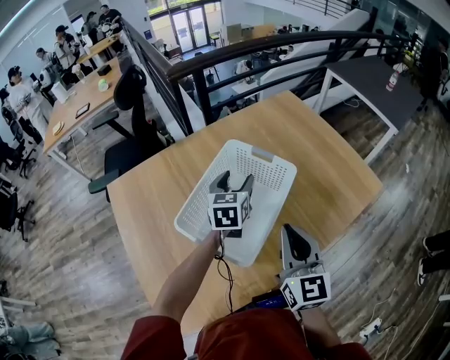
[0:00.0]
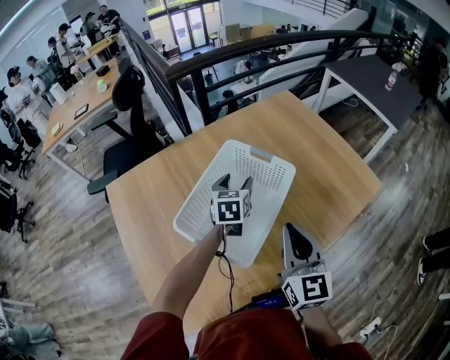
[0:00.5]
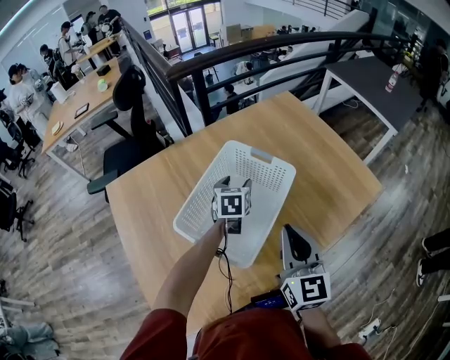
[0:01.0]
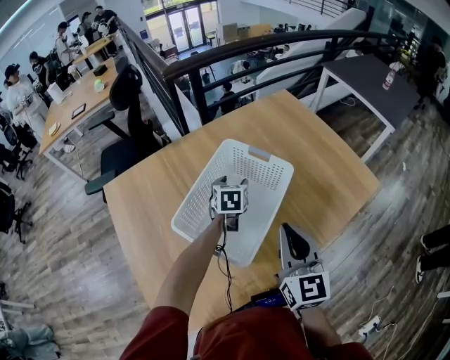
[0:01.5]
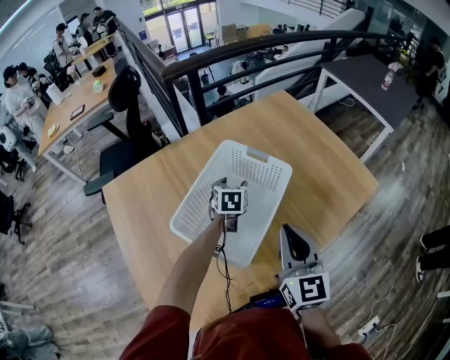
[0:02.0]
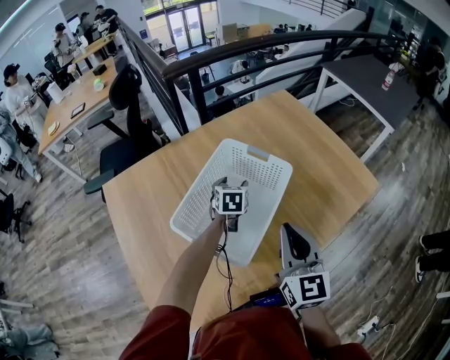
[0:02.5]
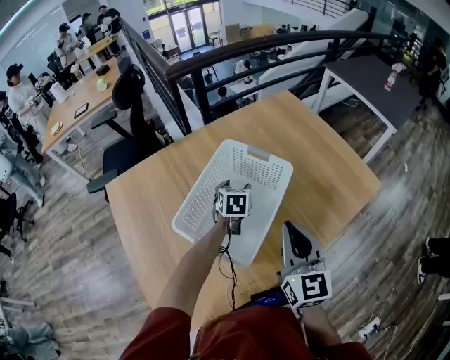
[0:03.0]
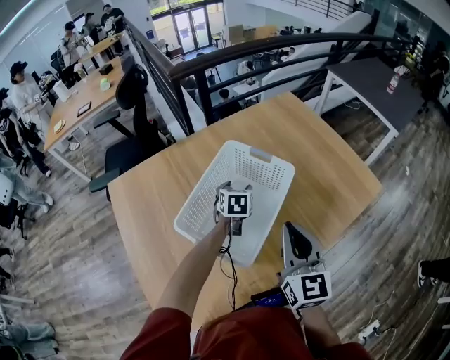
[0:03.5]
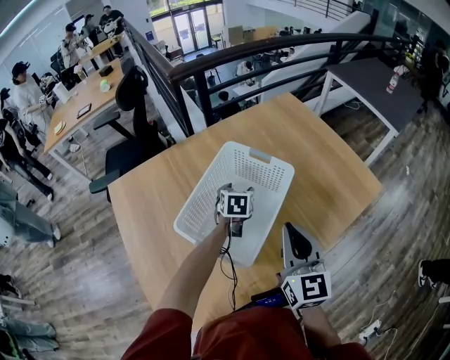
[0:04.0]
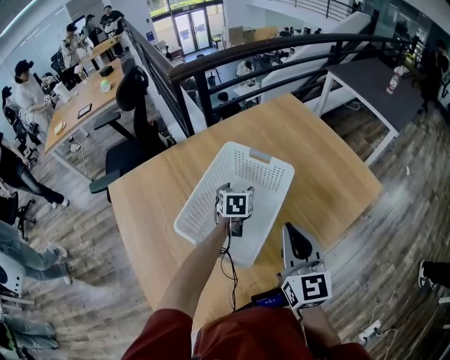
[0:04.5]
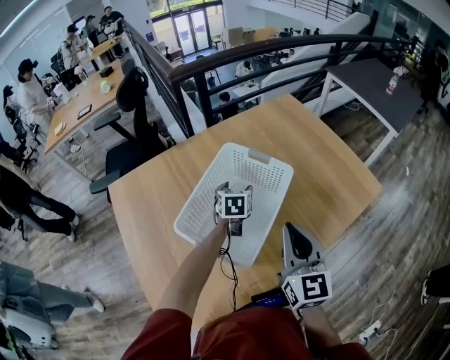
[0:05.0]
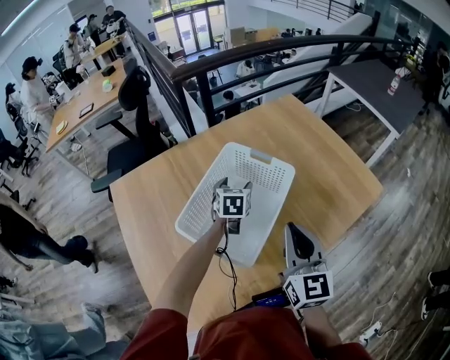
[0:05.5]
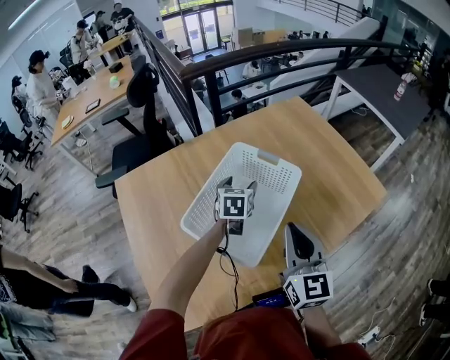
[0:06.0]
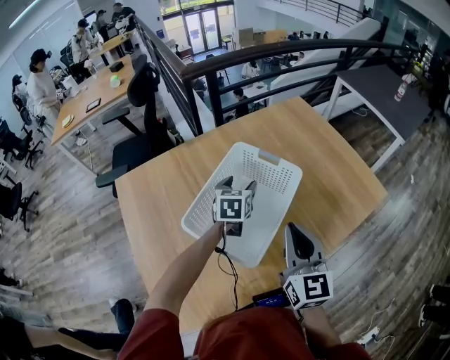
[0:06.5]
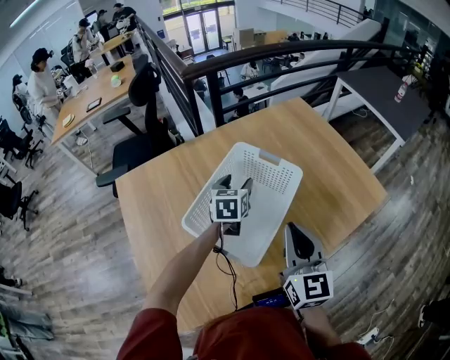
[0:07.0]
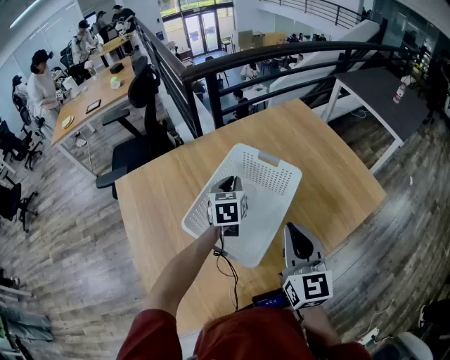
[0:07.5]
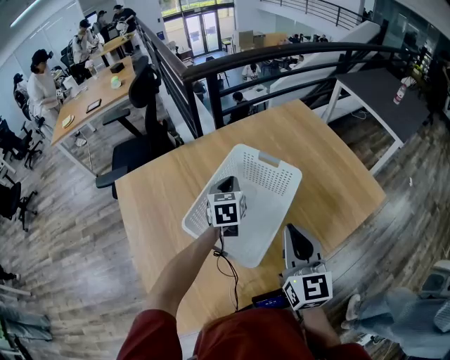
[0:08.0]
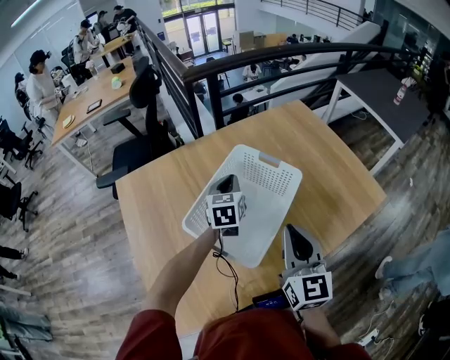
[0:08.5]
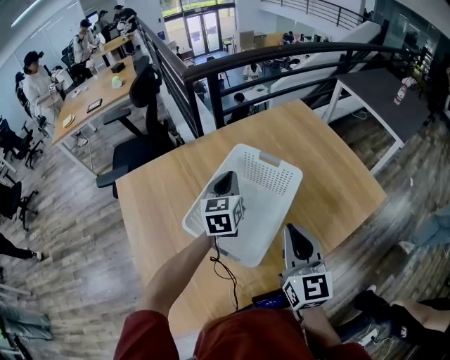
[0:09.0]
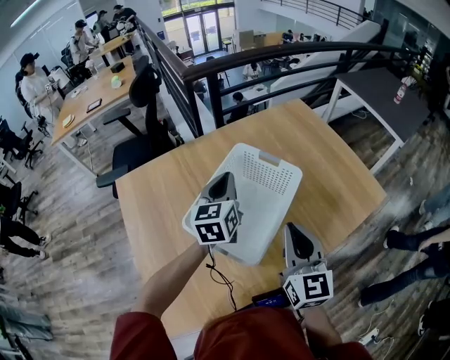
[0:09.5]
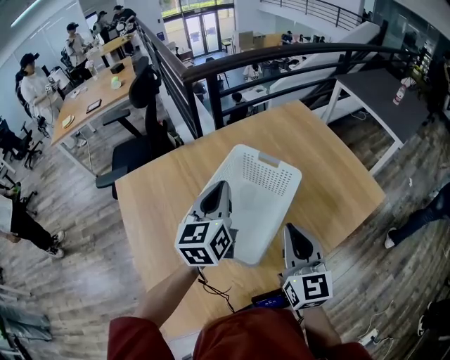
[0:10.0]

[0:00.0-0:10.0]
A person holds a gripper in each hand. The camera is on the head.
0:00.0 to 0:02.0: The left gripper shifts roughly 10 cm downward.
0:02.0 to 0:04.0: The grippers stay close to where they were, moving slightly.
0:04.0 to 0:06.0: The left gripper shifts by some 5 cm.
0:06.0 to 0:08.0: The left gripper shifts by roughly 5 cm, and closes up.
0:08.0 to 0:10.0: The left gripper goes roughly 15 cm upward and backward, and turns by some 20 degrees.

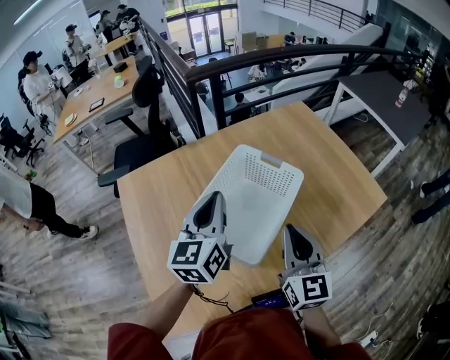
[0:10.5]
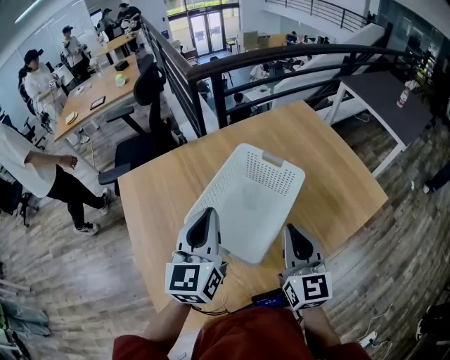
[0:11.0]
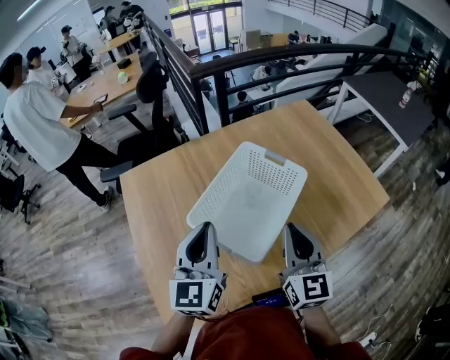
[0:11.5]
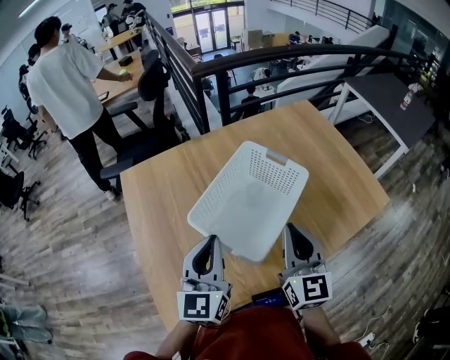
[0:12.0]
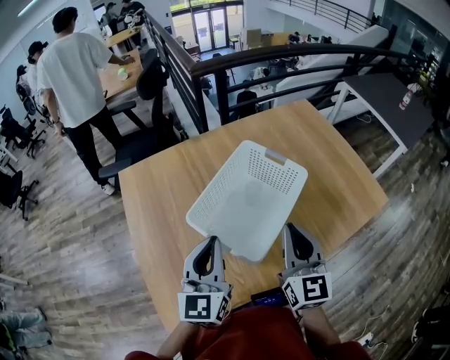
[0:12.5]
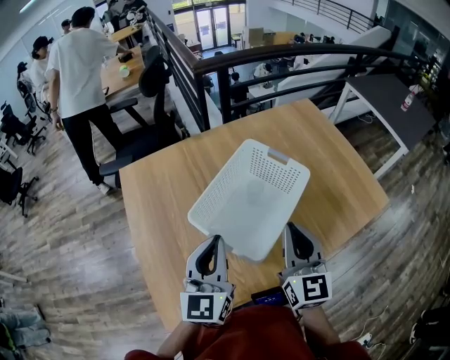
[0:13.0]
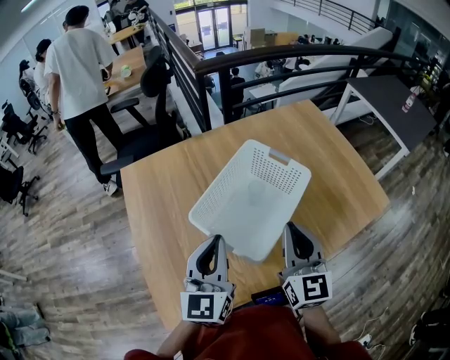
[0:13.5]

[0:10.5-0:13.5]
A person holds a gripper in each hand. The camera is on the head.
0:10.5 to 0:12.0: The left gripper heads backward, covering some 10 cm.
0:12.0 to 0:13.5: Both grippers stay put.

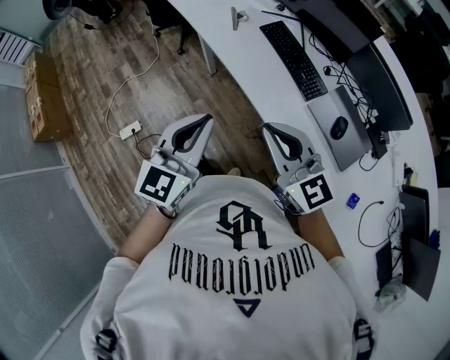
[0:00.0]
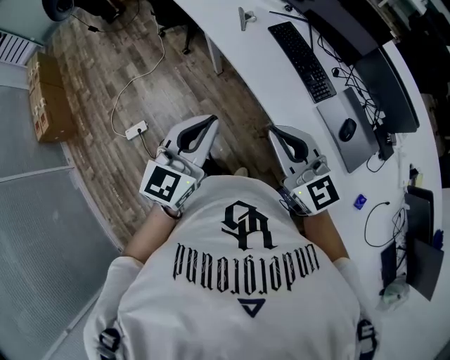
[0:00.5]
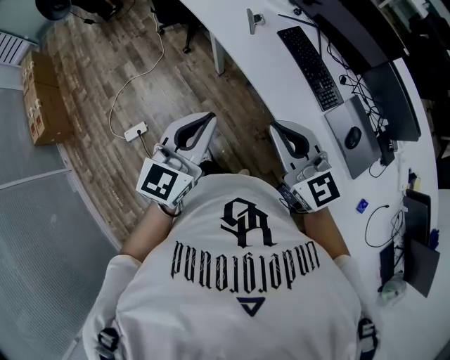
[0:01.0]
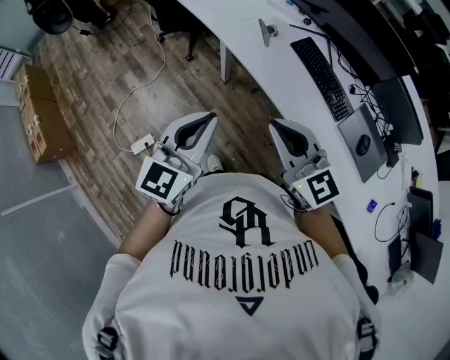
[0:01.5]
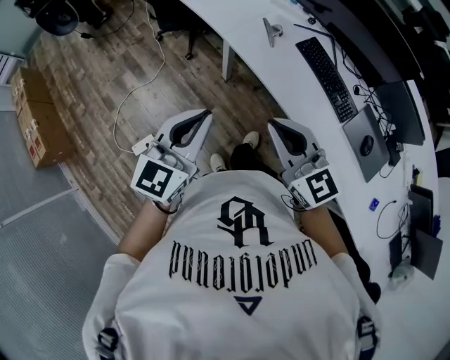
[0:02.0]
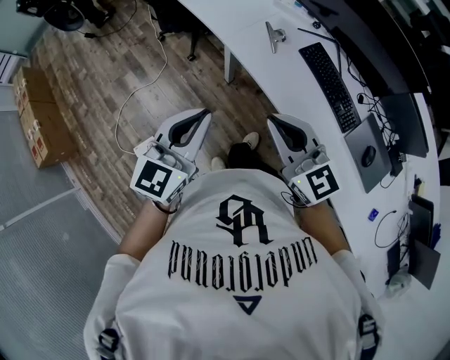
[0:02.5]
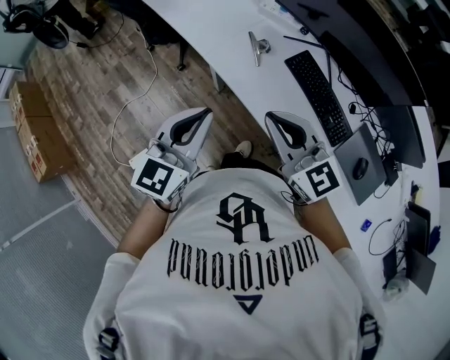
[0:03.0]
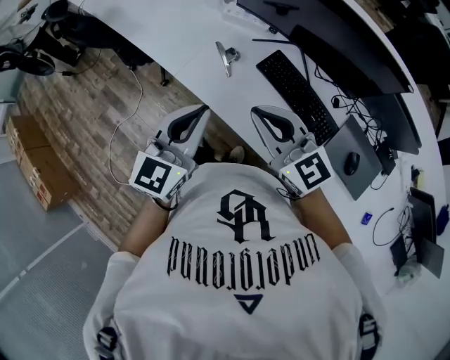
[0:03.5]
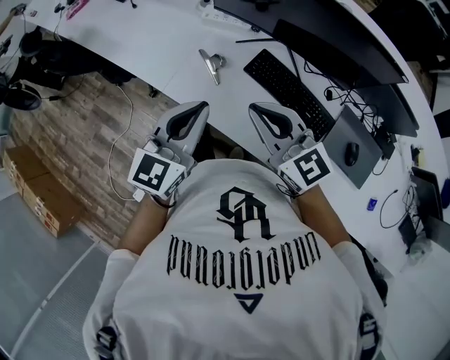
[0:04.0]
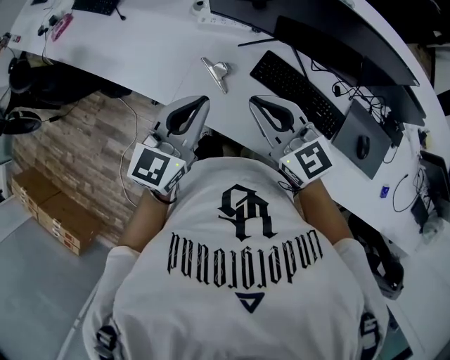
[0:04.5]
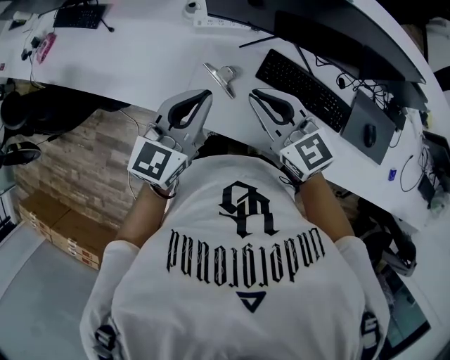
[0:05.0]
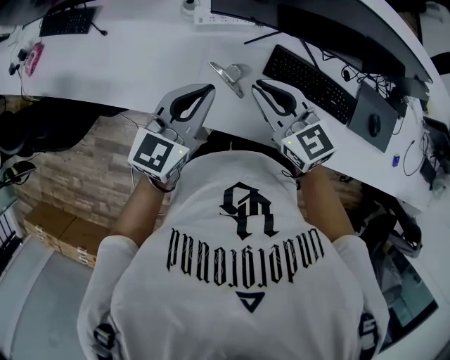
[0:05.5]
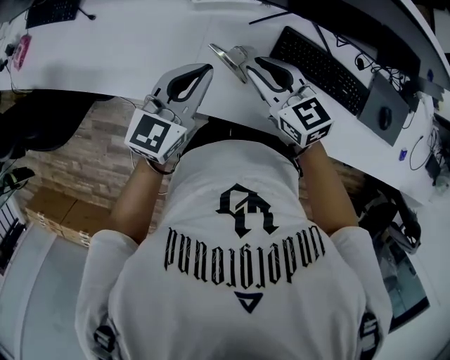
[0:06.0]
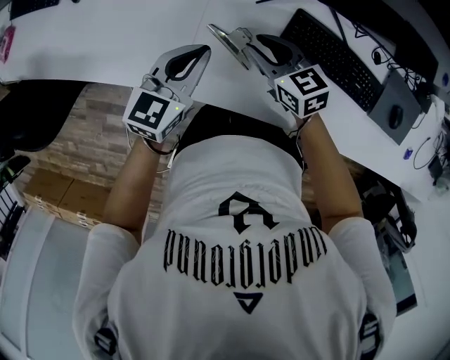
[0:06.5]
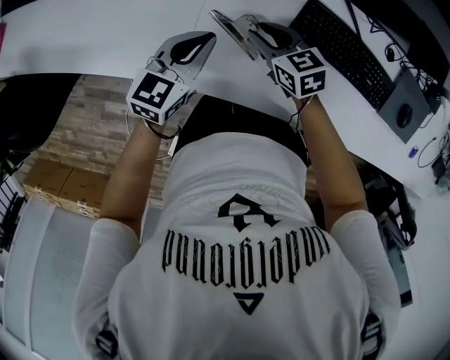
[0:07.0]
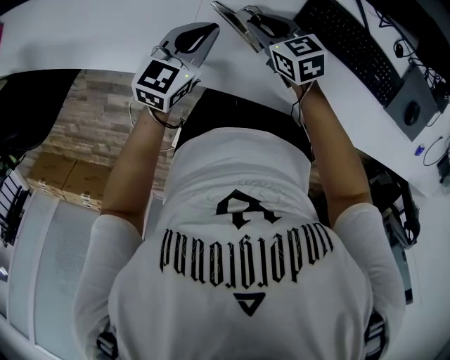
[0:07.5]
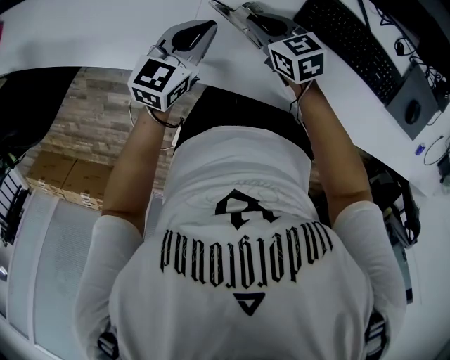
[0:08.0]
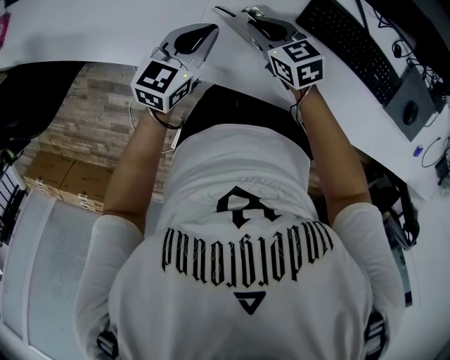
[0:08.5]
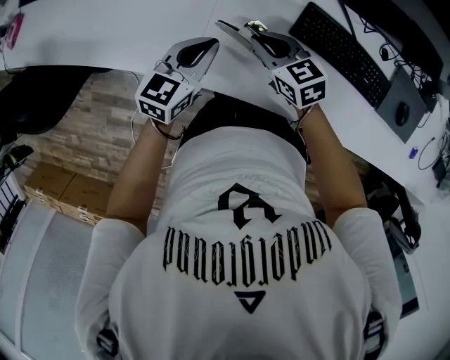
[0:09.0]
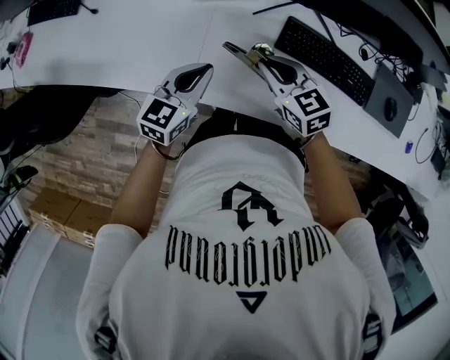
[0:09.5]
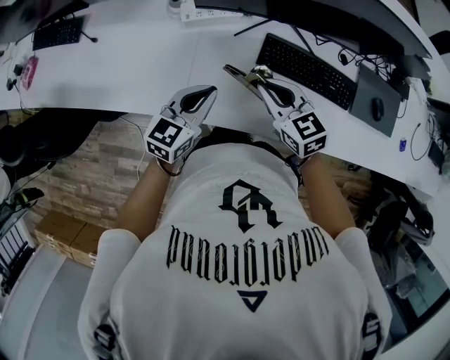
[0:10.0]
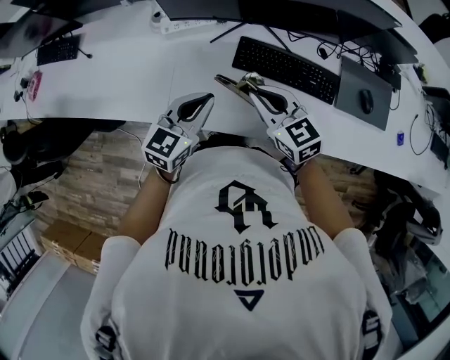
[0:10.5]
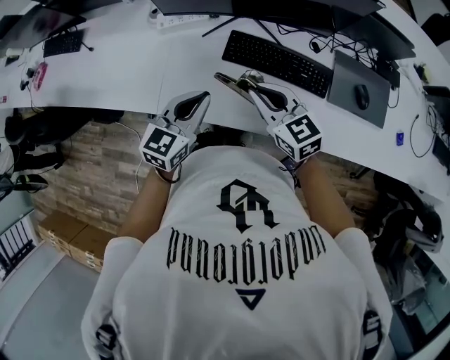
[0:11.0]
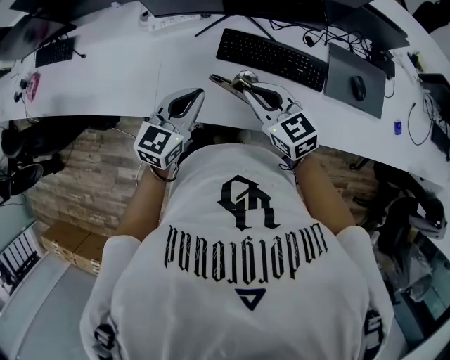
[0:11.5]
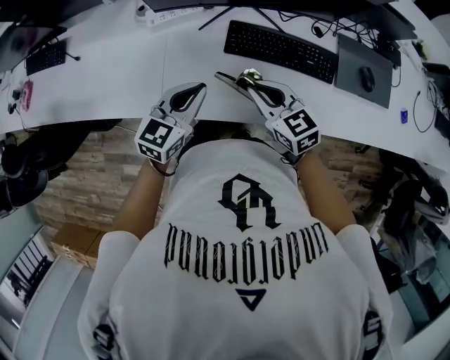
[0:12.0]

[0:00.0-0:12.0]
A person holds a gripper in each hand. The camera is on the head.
0:00.0 to 0:02.0: The two grippers go some 30 cm to the left and forward.
0:02.0 to 0:04.0: The grippers both shift forward and to the right by approximately 35 cm.
0:04.0 to 0:06.0: Both grippers travel together forward, downward and to the left, roughly 25 cm. The right gripper rotates some 30 degrees. The left gripper changes its angle by roughly 20 degrees.
0:06.0 to 0:08.0: The two grippers go approximately 20 cm downward.
0:08.0 to 0:10.0: The left gripper travels upward and backward by about 15 cm. The right gripper moves upward, roughly 20 cm, and turns by about 20 degrees.
0:10.0 to 0:12.0: The left gripper goes roughly 10 cm to the right. Meanwhile the right gripper travels to the right and backward by roughly 10 cm.

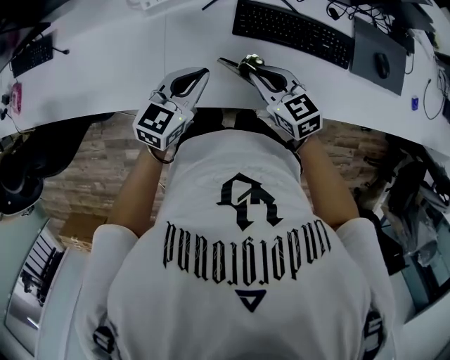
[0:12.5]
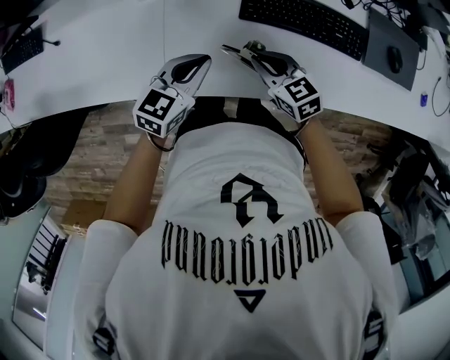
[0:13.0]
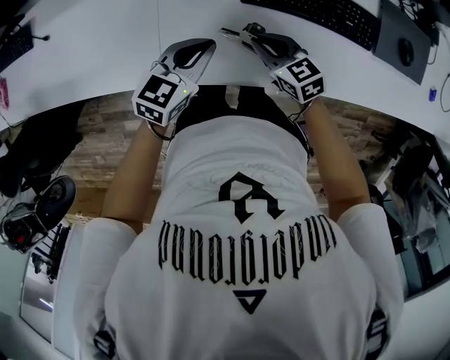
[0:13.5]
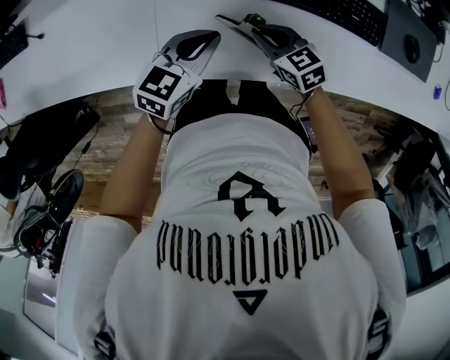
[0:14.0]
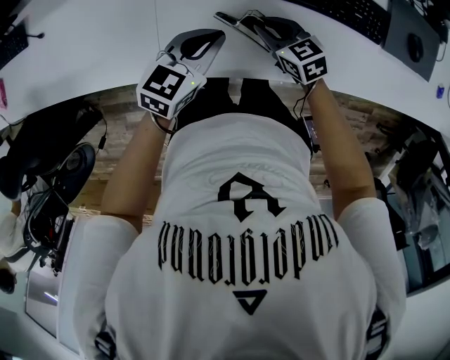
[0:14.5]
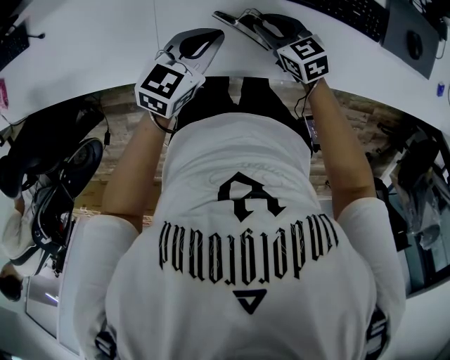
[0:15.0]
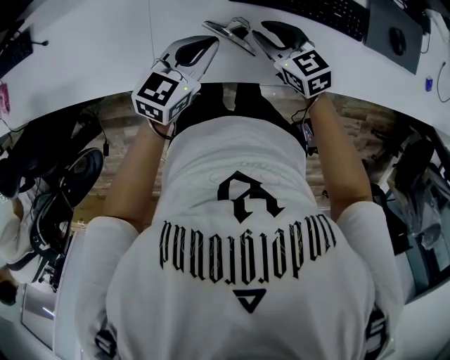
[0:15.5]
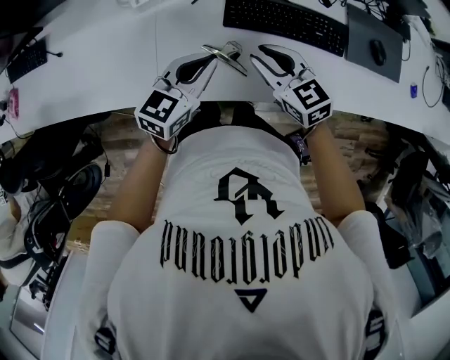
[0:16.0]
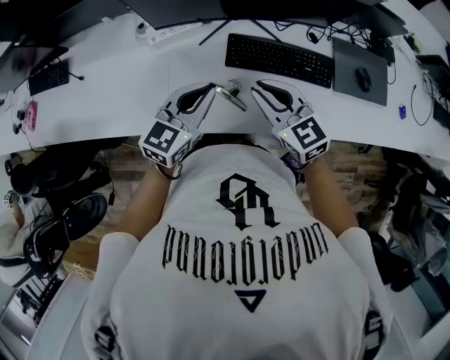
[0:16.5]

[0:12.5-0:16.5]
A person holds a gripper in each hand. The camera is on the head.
0:12.5 to 0:14.5: The left gripper goes about 10 cm downward; the right gripper moves downward, about 15 cm.
0:14.5 to 0:16.5: The right gripper shifts approximately 25 cm upward, and changes its angle by about 30 degrees, while the left gripper goes approximately 20 cm upward.
